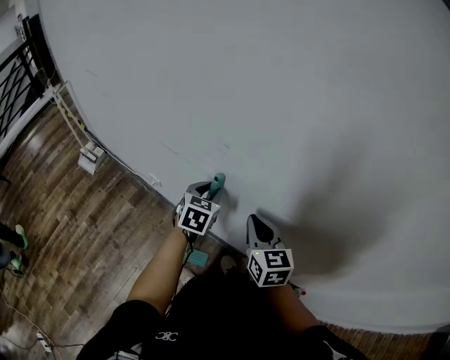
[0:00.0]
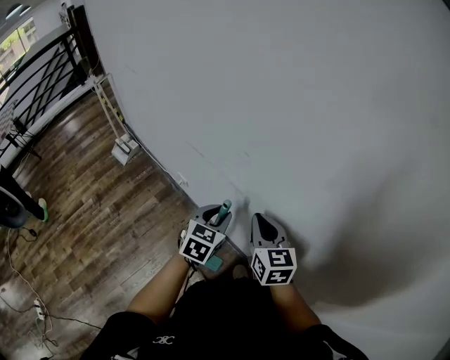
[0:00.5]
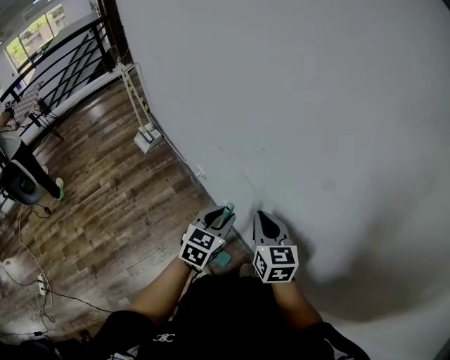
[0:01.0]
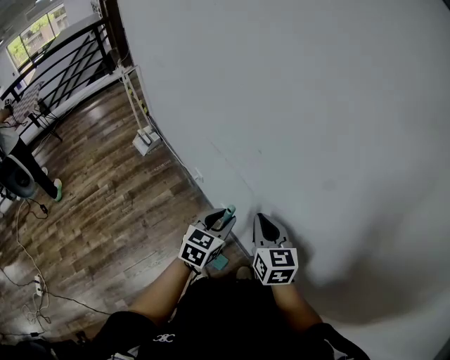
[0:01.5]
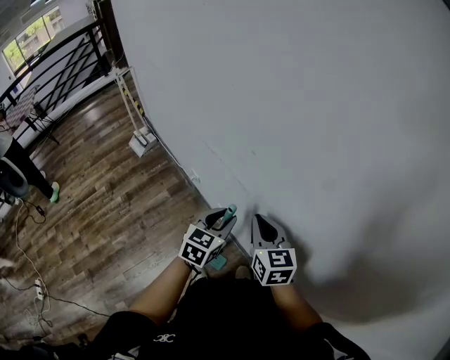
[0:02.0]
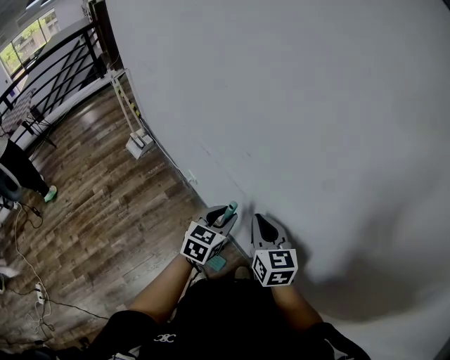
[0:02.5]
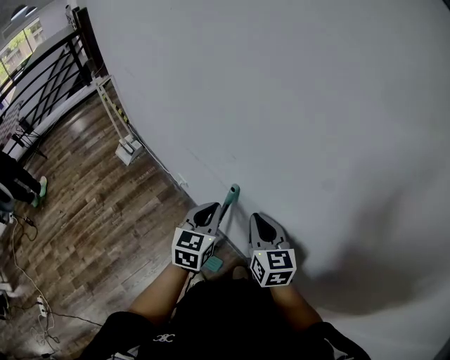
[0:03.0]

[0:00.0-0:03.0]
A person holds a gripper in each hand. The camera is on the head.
0:00.0 to 0:01.5: The left gripper is displaced backward by about 10 cm.
0:01.5 to 0:03.0: The left gripper heads upward, covering approximately 5 cm, and closes its fingers.

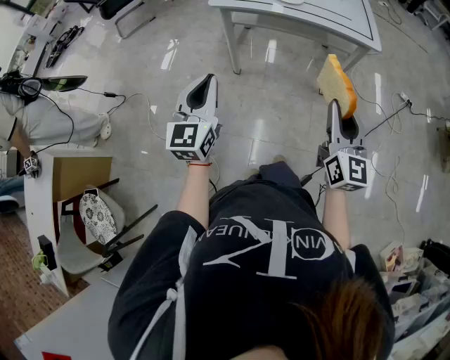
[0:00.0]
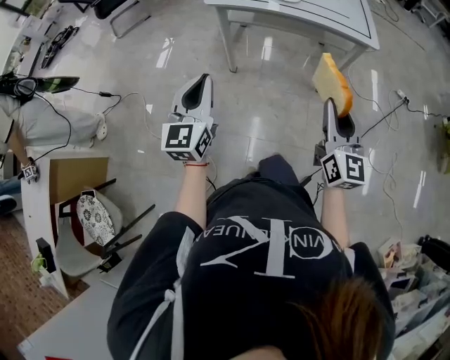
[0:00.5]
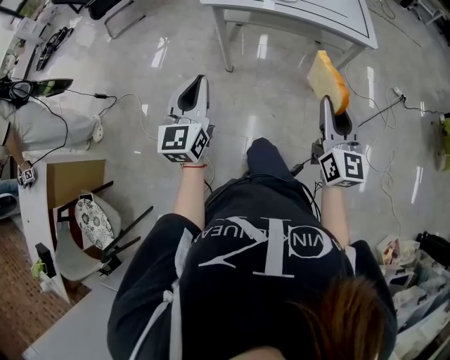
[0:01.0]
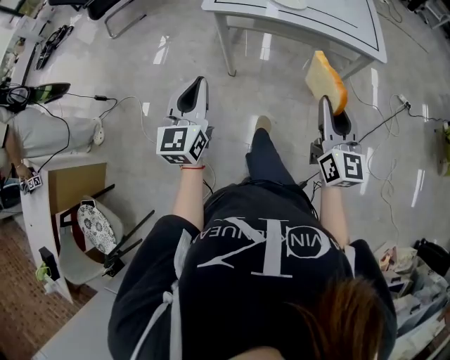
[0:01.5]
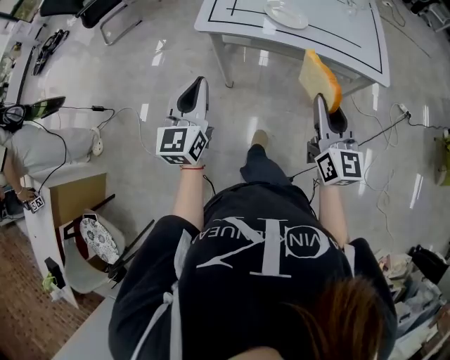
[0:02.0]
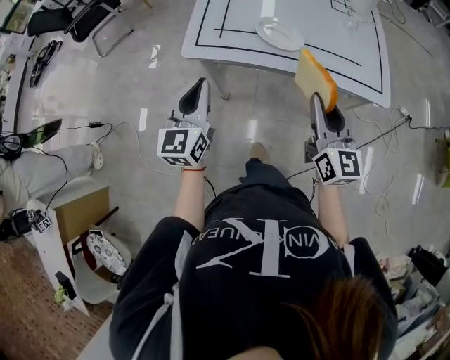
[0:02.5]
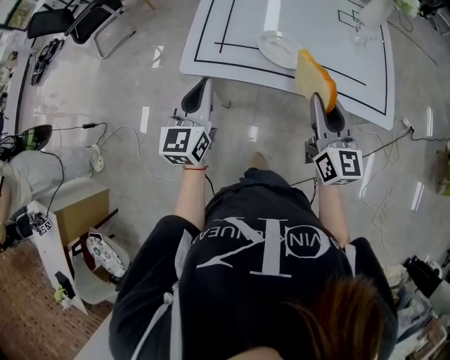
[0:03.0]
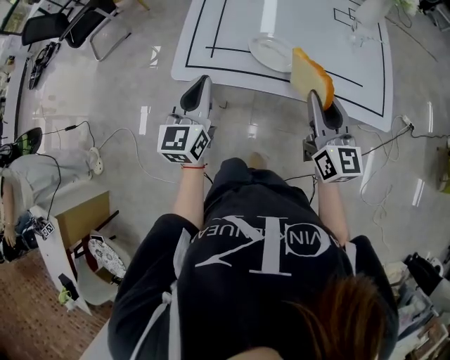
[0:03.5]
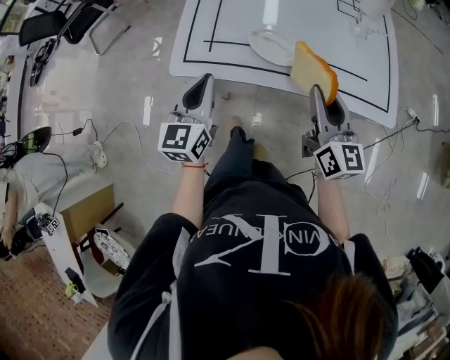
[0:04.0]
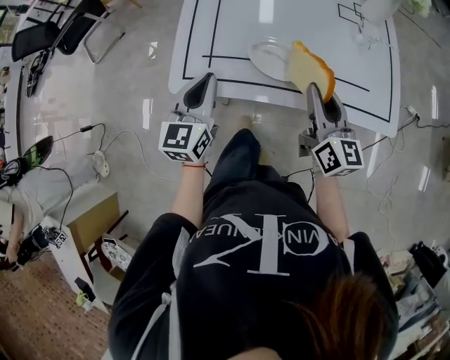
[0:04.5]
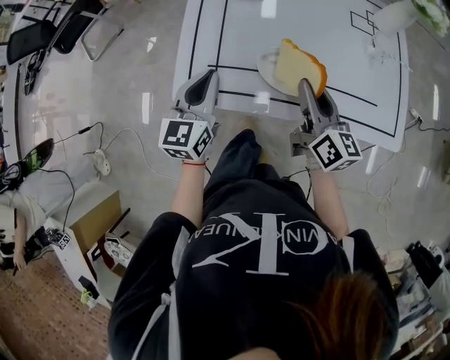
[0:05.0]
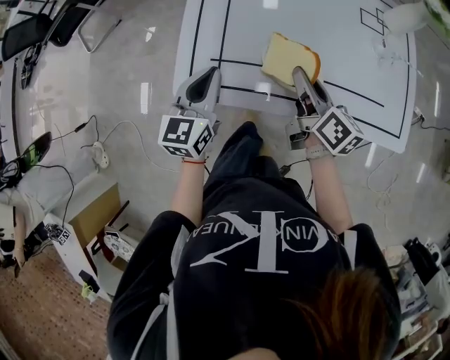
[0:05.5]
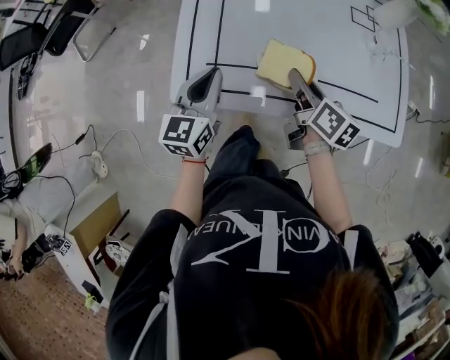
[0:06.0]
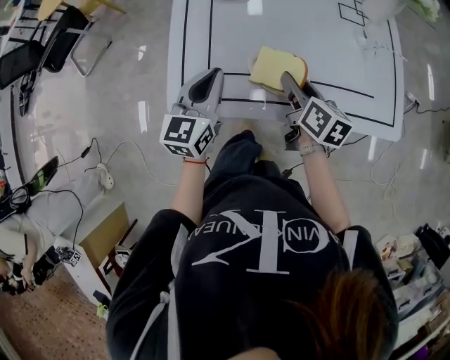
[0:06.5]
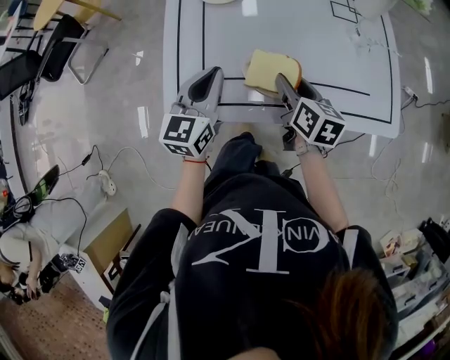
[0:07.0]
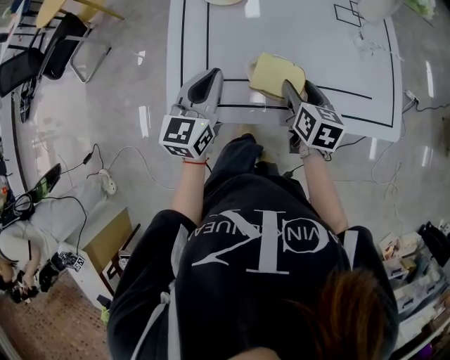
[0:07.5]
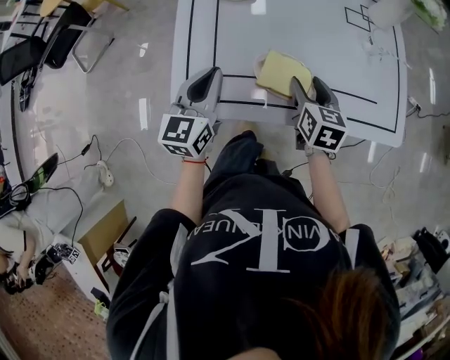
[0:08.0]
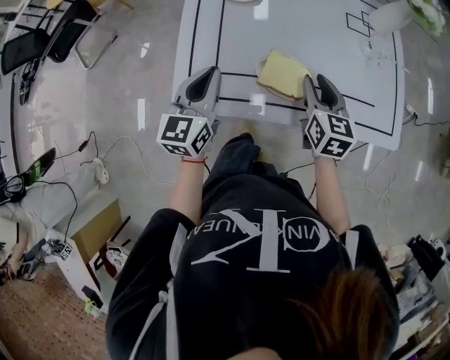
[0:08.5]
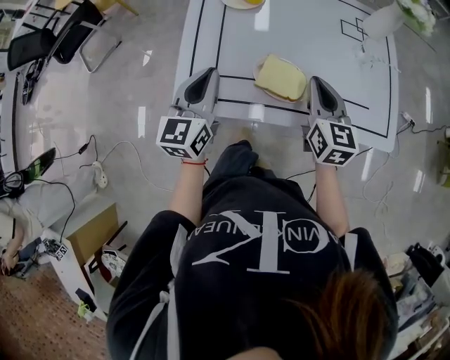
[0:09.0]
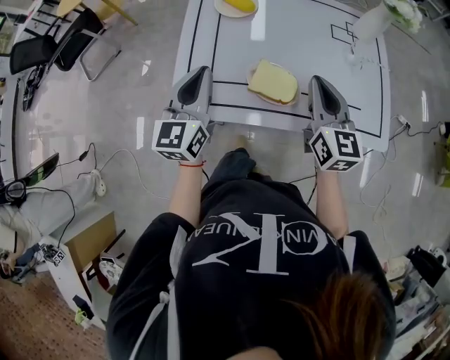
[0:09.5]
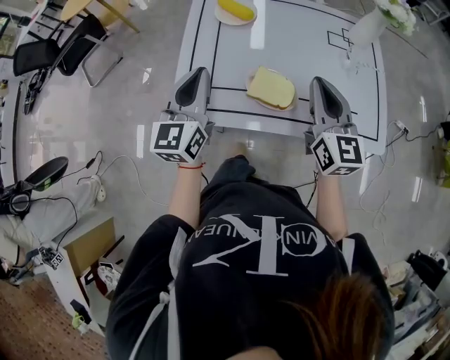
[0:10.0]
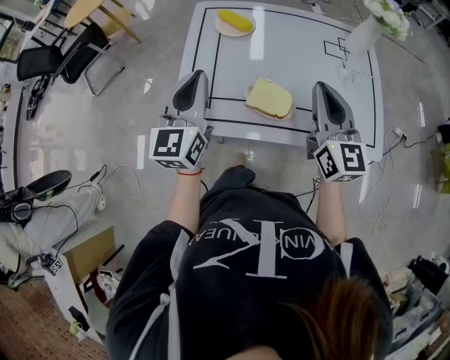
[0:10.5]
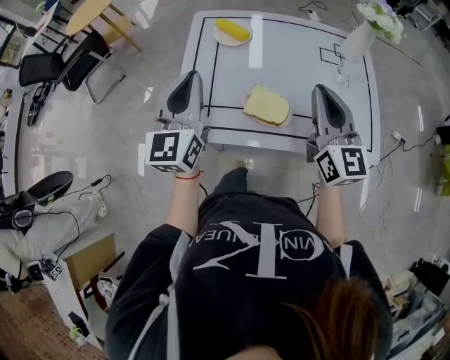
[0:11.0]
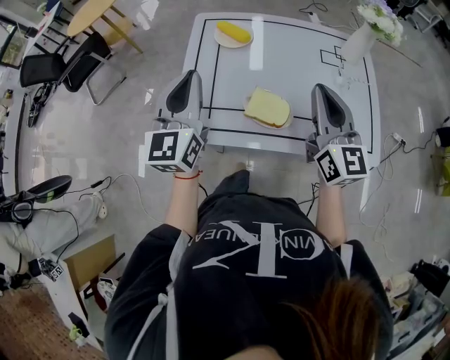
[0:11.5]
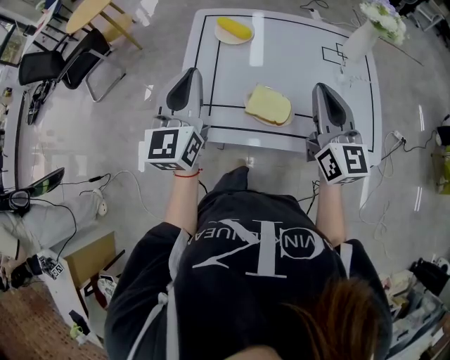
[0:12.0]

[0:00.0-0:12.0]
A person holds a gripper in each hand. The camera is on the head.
0:00.0 to 0:02.0: Both grippers move forward, some 20 cm.
0:02.0 to 0:04.0: The grippers both shift forward by some 25 cm.
0:04.0 to 0:06.0: The right gripper goes roughly 20 cm forward, downward and to the left, and turns by approximately 40 degrees. The left gripper travels forward by approximately 10 cm.
0:06.0 to 0:08.0: The right gripper swivels roughly 30 degrees, and opens its fingers.
0:08.0 to 0:10.0: The right gripper moves upward, roughly 20 cm, points its fingers roughly 30 degrees further upward, and closes its fingers; the left gripper moves upward, approximately 10 cm.
0:10.0 to 0:12.0: The left gripper heads upward, covering approximately 5 cm.

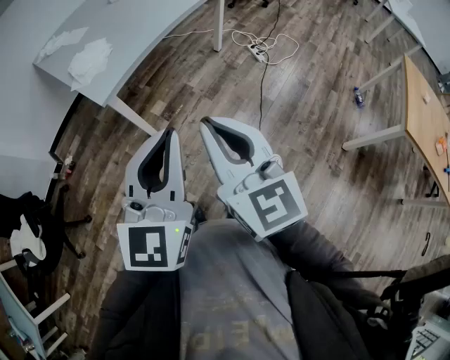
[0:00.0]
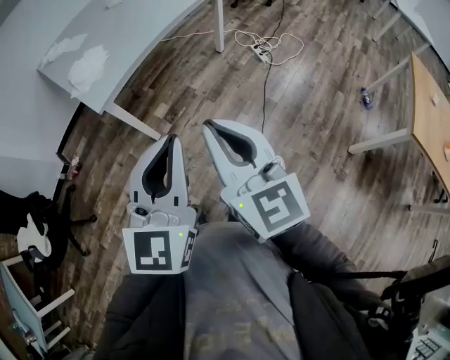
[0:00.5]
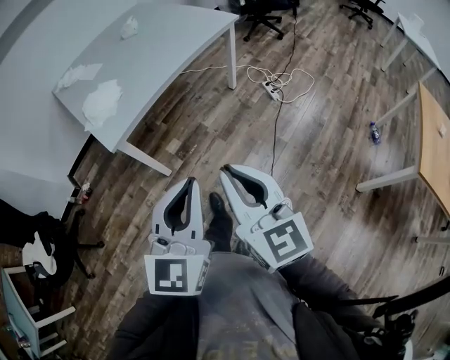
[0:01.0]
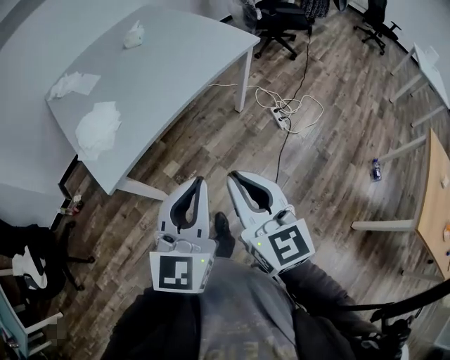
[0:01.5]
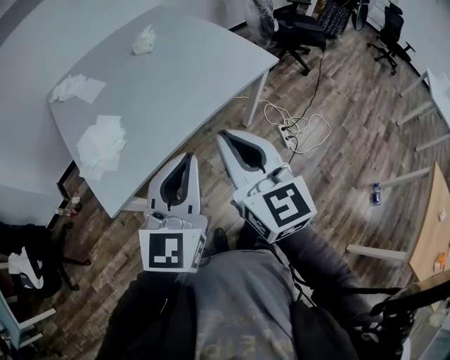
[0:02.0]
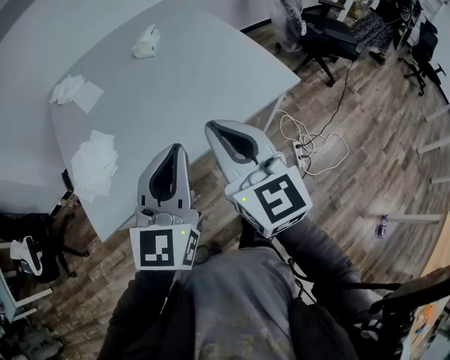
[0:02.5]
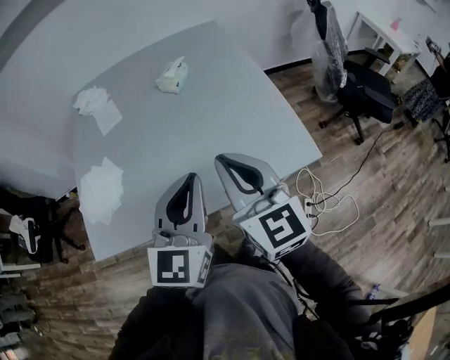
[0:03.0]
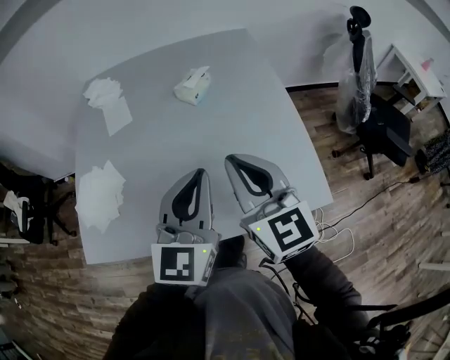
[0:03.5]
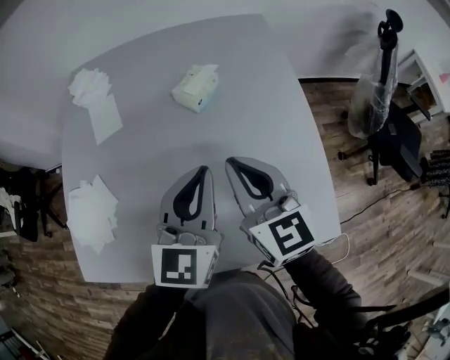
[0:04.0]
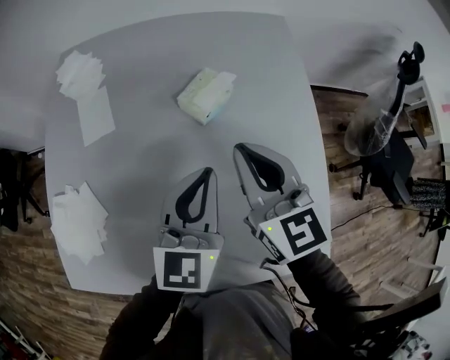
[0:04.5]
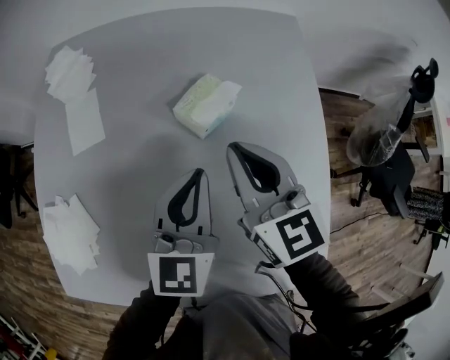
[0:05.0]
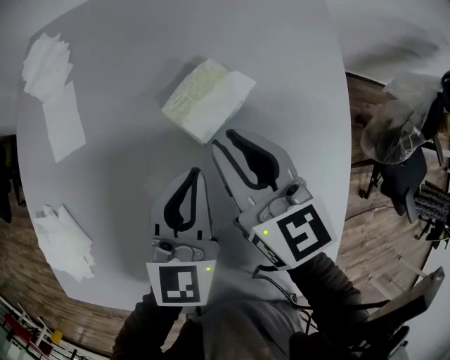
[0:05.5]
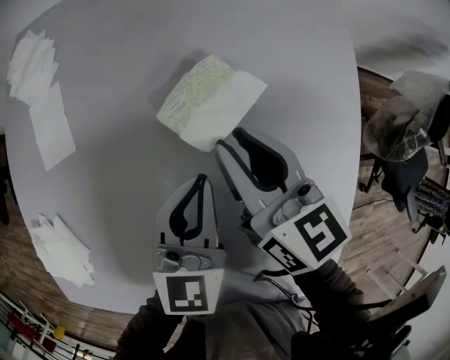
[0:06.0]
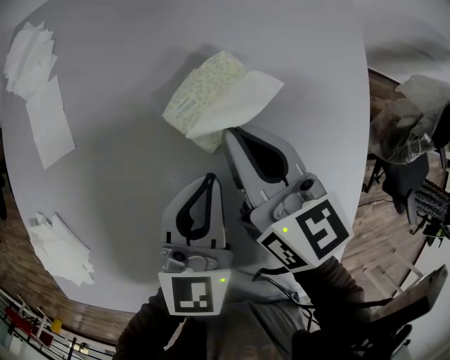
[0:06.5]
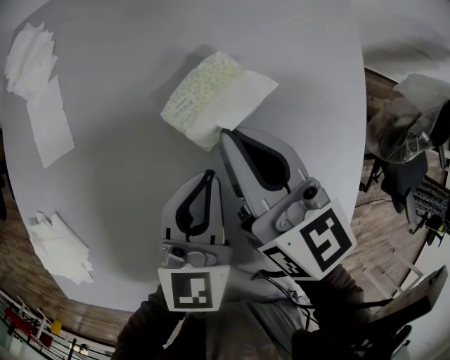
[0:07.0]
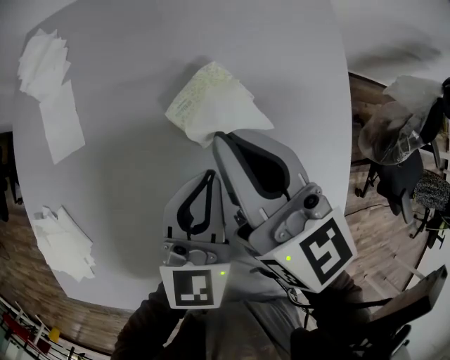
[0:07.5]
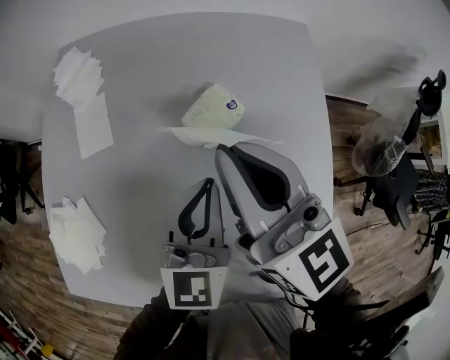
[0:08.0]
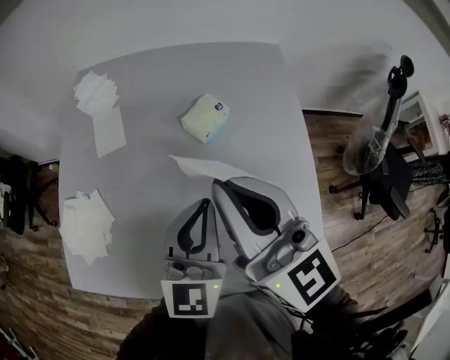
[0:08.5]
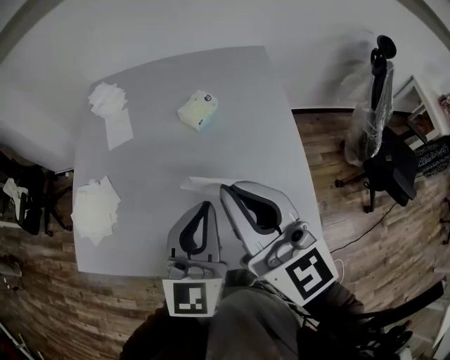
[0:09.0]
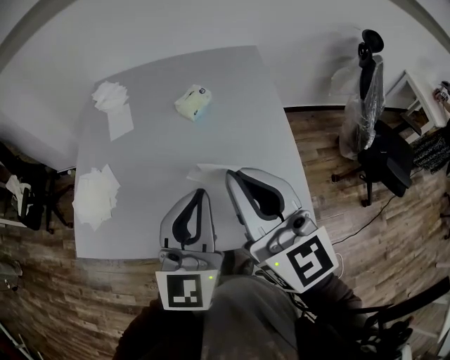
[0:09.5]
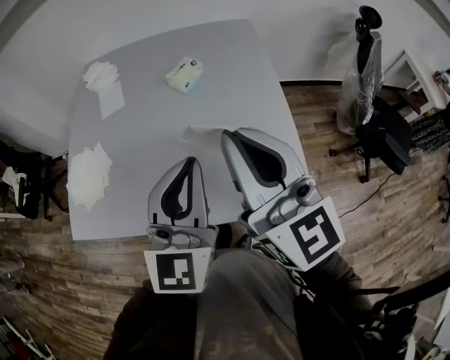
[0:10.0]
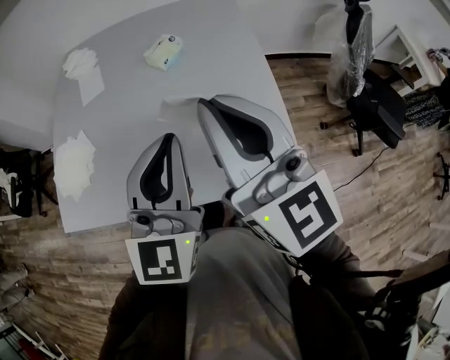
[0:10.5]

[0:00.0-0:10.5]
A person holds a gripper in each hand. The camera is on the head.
0:00.0 to 0:02.0: The two grippers travel together, forward, some 40 cm.
0:02.0 to 0:04.0: Both grippers are carried roughly 60 cm. The left gripper turns by about 30 degrees; the right gripper turns by roughly 40 degrees.
0:04.0 to 0:06.5: Both grippers travel together forward and downward, roughly 30 cm. The right gripper changes its angle by some 20 degrees, and opens and closes again.
0:06.5 to 0:08.5: The two grippers go approximately 30 cm upward and backward. The right gripper turns by about 30 degrees.
0:08.5 to 0:10.5: The right gripper is displaced backward by roughly 20 cm. Meanwhile the left gripper heads backward and upward, covering about 20 cm.

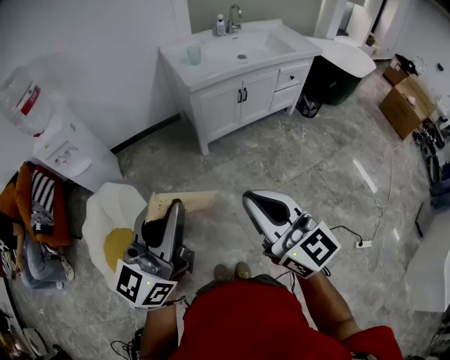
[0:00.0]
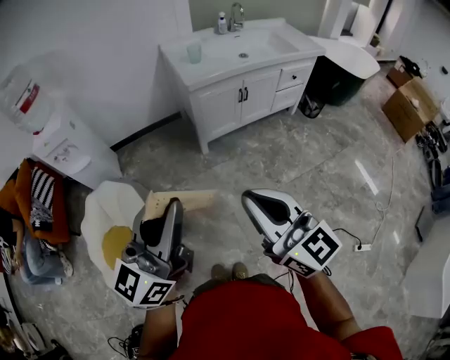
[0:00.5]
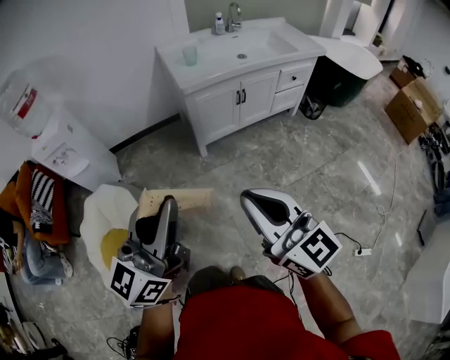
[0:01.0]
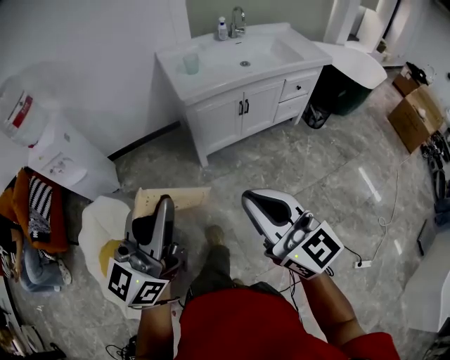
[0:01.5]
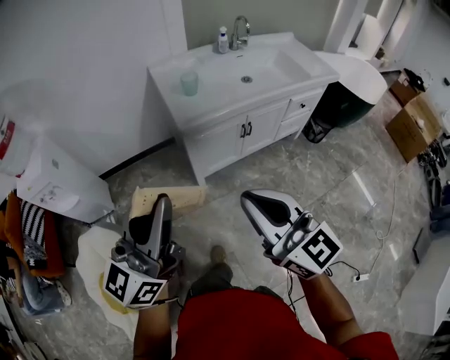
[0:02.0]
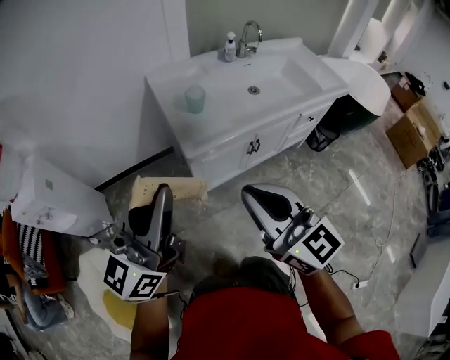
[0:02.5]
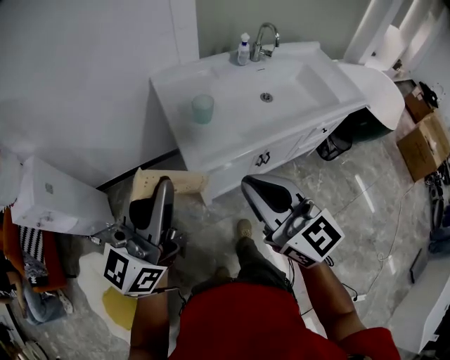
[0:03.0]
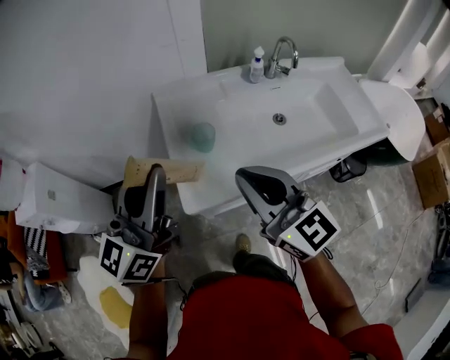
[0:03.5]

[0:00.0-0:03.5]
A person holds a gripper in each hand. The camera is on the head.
0:00.0 to 0:02.0: Both grippers travel together forward, approximately 30 cm.
0:02.0 to 0:03.5: The two grippers go about 40 cm forward.
